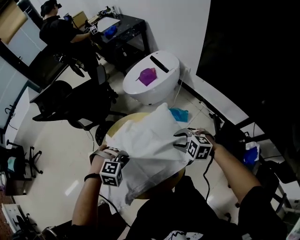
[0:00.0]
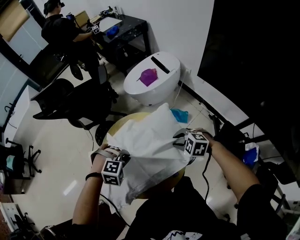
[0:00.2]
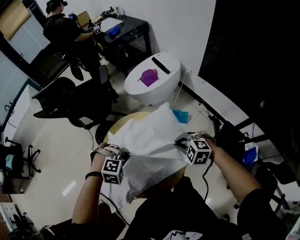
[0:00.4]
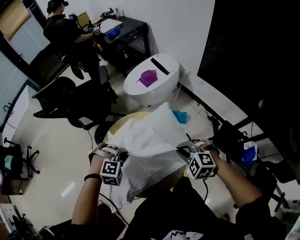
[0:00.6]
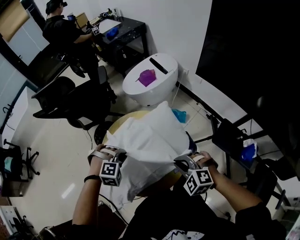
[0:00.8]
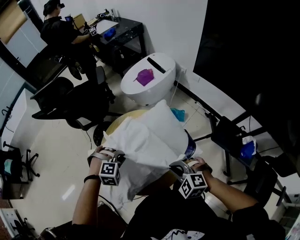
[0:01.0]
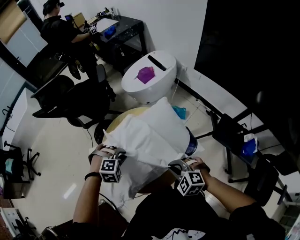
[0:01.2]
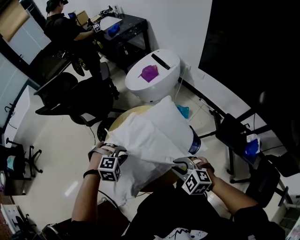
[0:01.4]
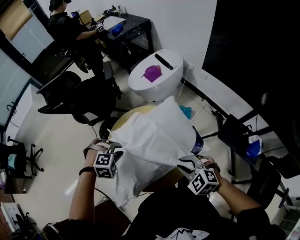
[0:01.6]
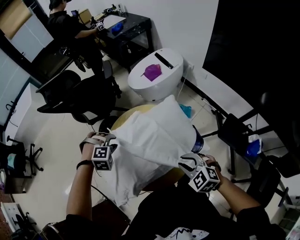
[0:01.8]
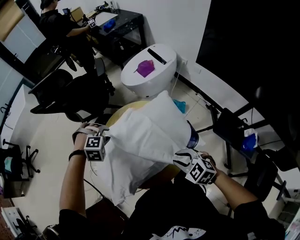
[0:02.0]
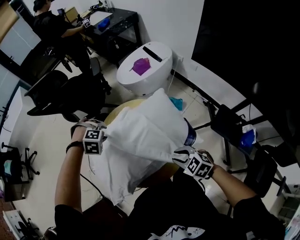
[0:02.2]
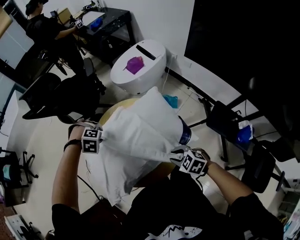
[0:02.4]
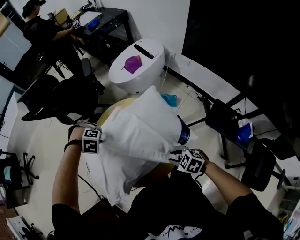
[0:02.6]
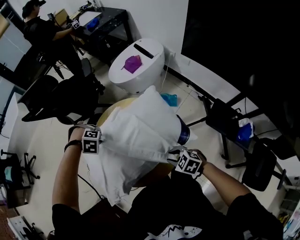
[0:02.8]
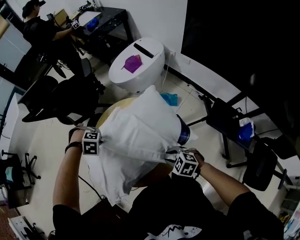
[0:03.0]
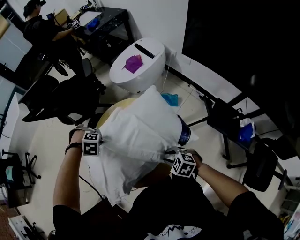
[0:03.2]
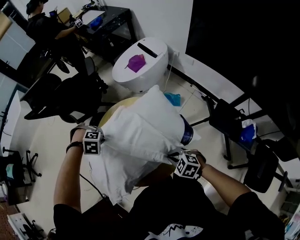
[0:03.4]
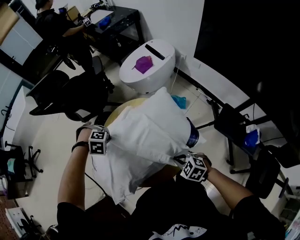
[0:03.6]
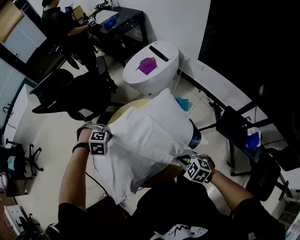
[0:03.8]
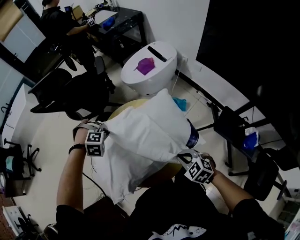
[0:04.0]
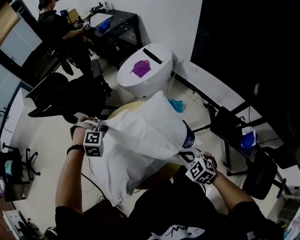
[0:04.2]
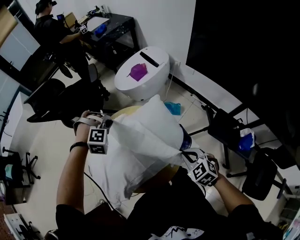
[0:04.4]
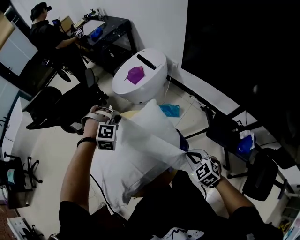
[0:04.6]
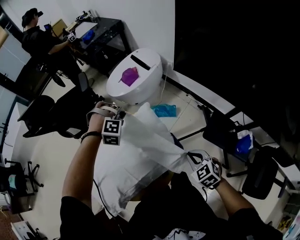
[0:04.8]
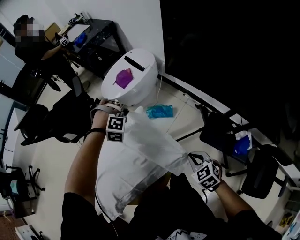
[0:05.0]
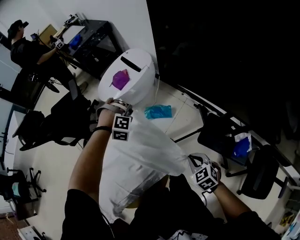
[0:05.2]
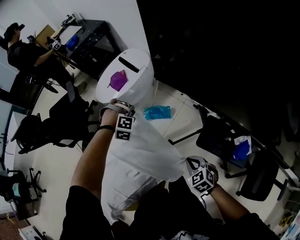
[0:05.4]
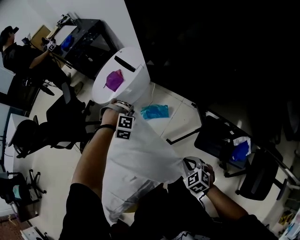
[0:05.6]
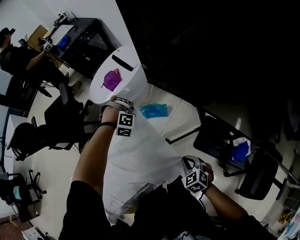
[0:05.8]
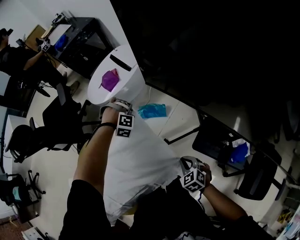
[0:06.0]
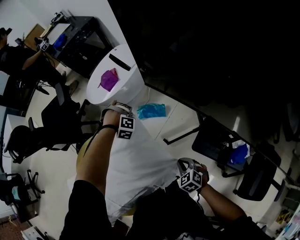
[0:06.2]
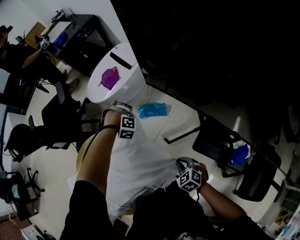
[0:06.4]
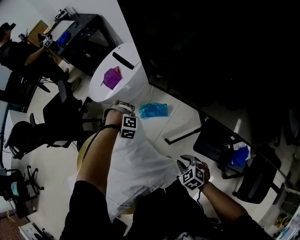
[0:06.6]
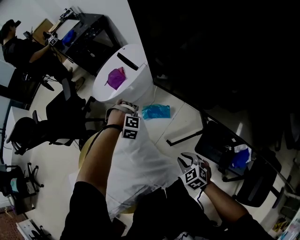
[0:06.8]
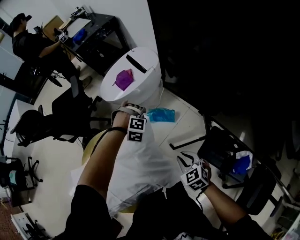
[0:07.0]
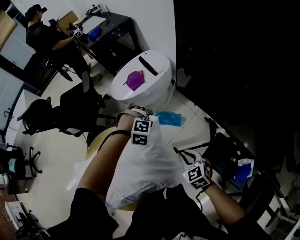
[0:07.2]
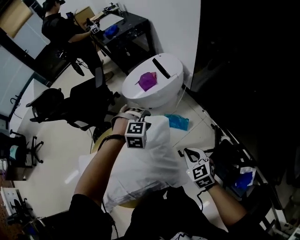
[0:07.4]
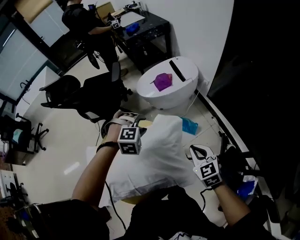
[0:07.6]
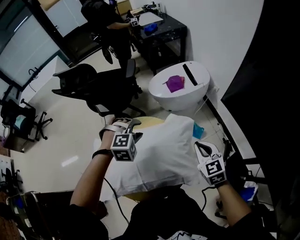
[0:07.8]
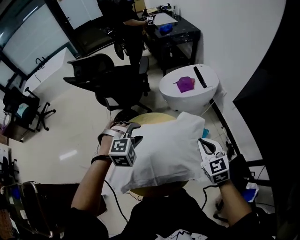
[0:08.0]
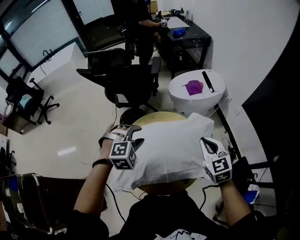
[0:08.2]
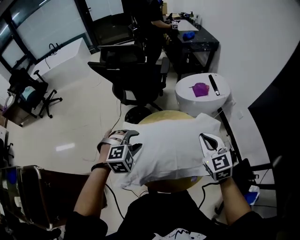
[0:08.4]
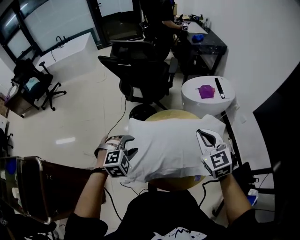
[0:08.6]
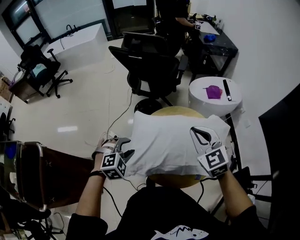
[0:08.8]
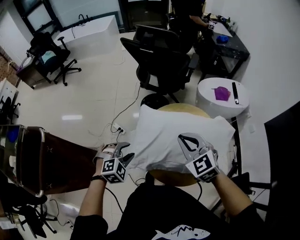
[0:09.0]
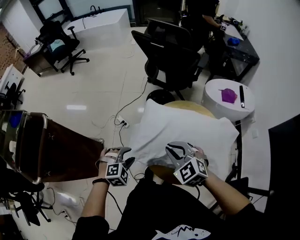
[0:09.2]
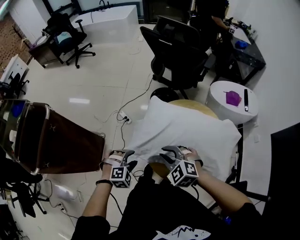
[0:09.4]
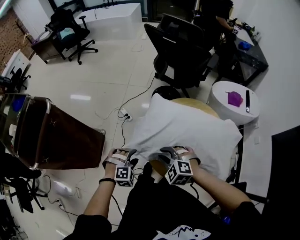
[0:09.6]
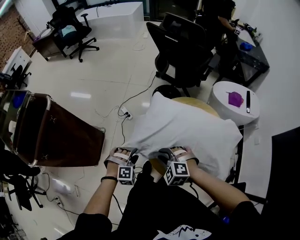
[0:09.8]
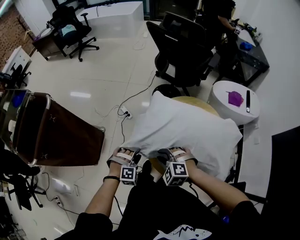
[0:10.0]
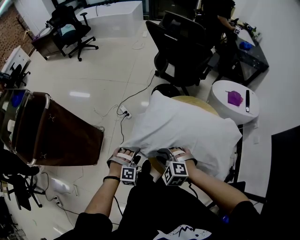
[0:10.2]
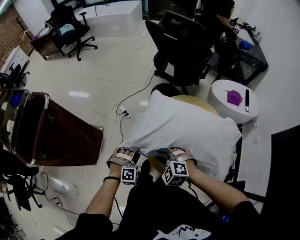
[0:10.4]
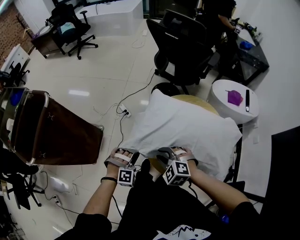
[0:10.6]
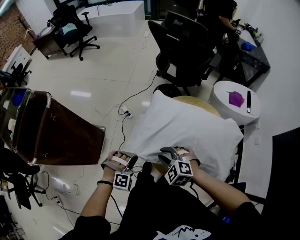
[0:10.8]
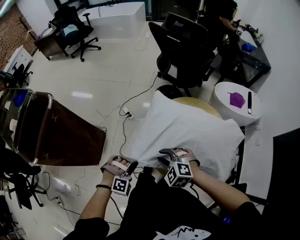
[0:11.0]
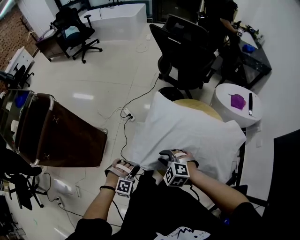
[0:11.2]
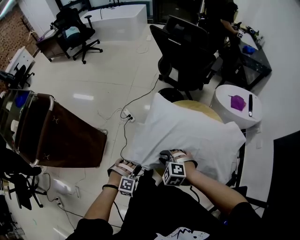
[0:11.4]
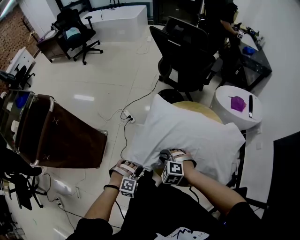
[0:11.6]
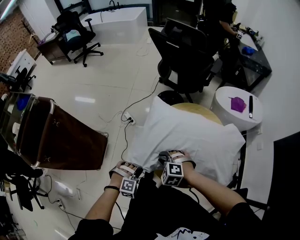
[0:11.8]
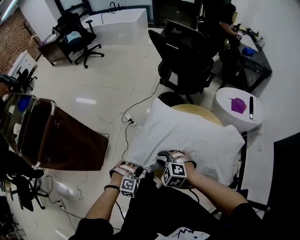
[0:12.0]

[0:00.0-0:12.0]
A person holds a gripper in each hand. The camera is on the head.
0.0 to 1.6 s: The left gripper changes place by approximately 10 cm. Meanwhile the right gripper goes up and down, about 5 cm each way, reversing 2 times, and closes and opens again.
1.6 to 3.0 s: The right gripper shifts about 10 cm downward. Meanwhile the left gripper changes place by some 10 cm, rotates roughly 20 degrees, and opens, then closes once more.
3.0 to 4.4 s: The left gripper ends up approximately 15 cm from where it was, and swivels approximately 30 degrees; the right gripper travels upward by approximately 10 cm, changes its angle by approximately 20 degrees, and closes up.
4.4 to 6.0 s: The left gripper heads to the right, downward and forward, covering some 40 cm. Meanwhile the right gripper is displaced to the right and downward by roughly 25 cm.
6.0 to 7.6 s: The right gripper moves upward, forward and to the left, approximately 20 cm, and swivels roughly 30 degrees. The left gripper travels upward, to the left and backward by some 25 cm, rotates approximately 40 degrees, and opens up.
7.6 to 9.0 s: Both grippers are carried roughly 50 cm. The right gripper turns by about 40 degrees, while the left gripper rolls counterclockwise, seen from behind, by approximately 50 degrees.
9.0 to 10.4 s: The two grippers go some 15 cm downward. The left gripper changes its angle by roughly 20 degrees. Meanwhile the right gripper rotates some 40 degrees, and opens up.
10.4 to 12.0 s: The left gripper travels backward by approximately 5 cm, and closes.

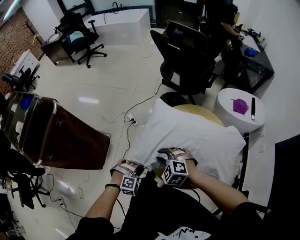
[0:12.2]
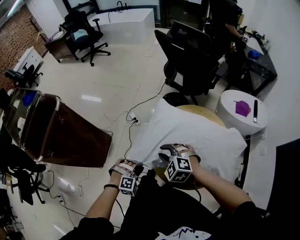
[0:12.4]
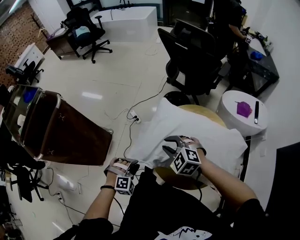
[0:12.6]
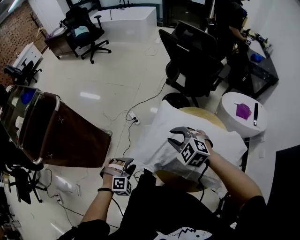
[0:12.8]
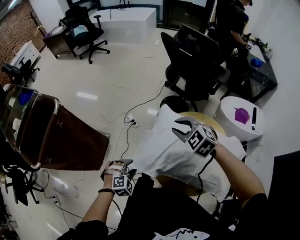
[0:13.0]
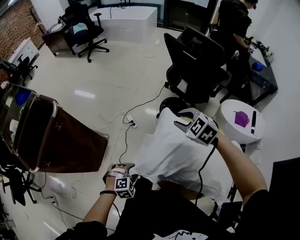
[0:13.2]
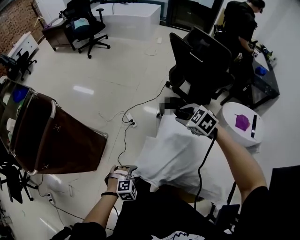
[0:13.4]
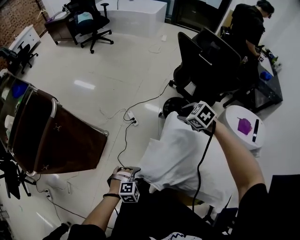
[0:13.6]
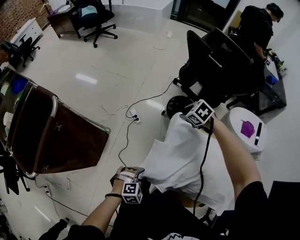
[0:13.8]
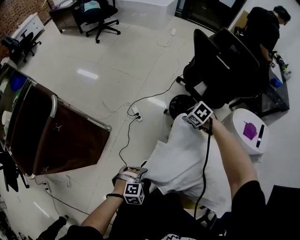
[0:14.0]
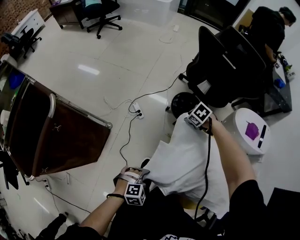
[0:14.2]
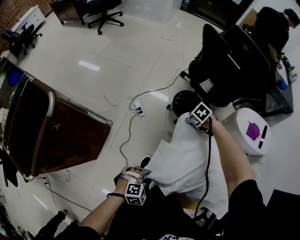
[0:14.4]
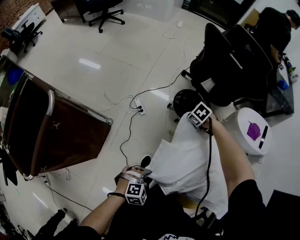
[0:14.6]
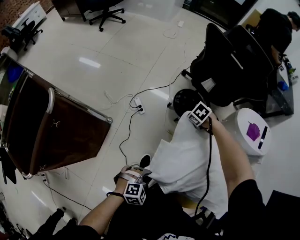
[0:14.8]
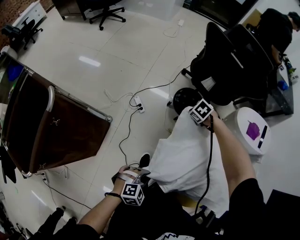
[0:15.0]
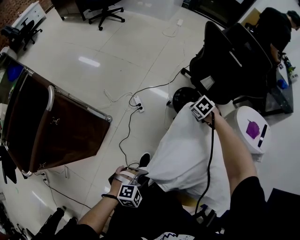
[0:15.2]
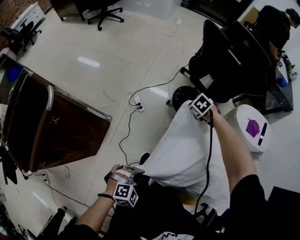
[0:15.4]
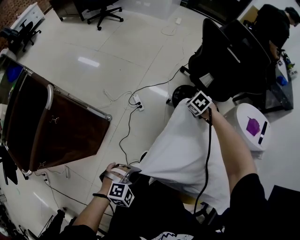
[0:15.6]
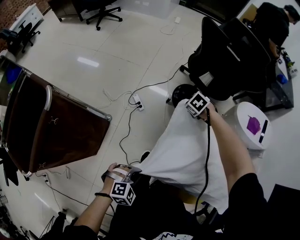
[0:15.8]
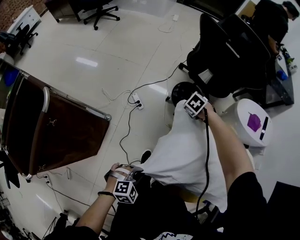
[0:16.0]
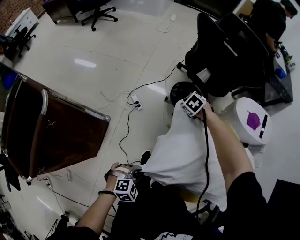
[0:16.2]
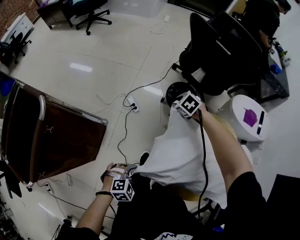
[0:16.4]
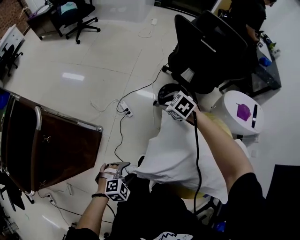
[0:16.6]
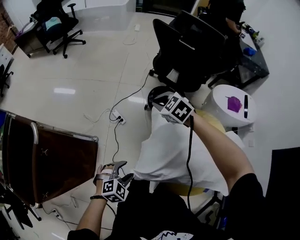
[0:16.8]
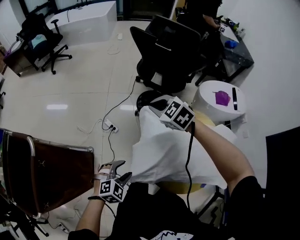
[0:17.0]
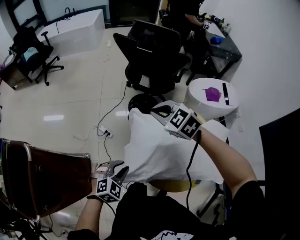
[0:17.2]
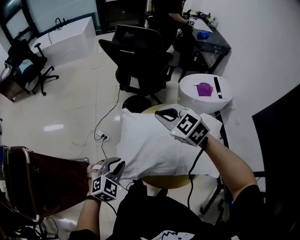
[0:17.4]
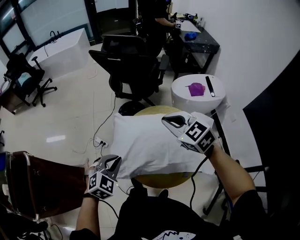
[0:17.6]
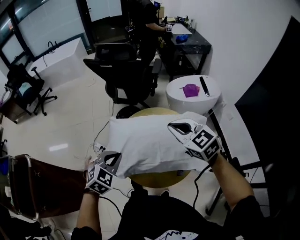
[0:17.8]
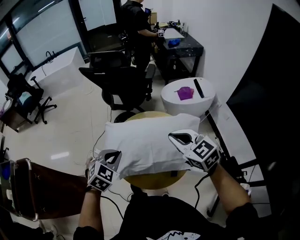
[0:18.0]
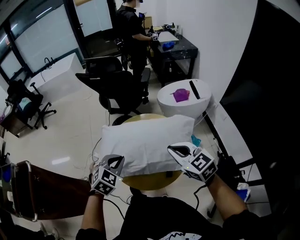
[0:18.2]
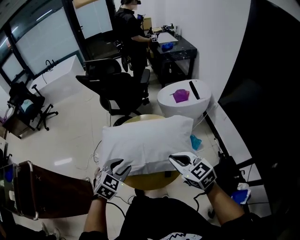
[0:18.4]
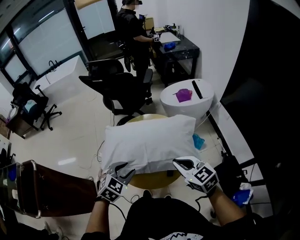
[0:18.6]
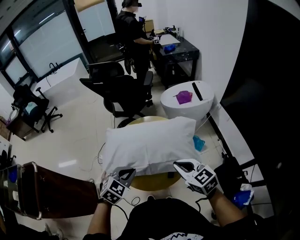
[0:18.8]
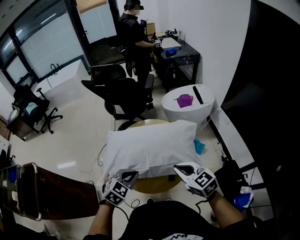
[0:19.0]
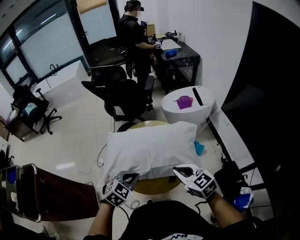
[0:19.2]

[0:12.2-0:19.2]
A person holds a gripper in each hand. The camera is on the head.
12.2 to 13.6 s: The right gripper shifts about 30 cm forward, and swivels about 20 degrees; the left gripper moves forward, some 5 cm, turns by about 30 degrees, and opens.
13.6 to 15.0 s: The right gripper travels downward by about 15 cm, rotates about 20 degrees, and closes, while the left gripper closes up.
15.0 to 16.4 s: The left gripper shifts by some 5 cm, and opens. Meanwhile the right gripper changes place by roughly 5 cm, and opens up.
16.4 to 17.8 s: The left gripper shifts approximately 30 cm upward and to the right, turns by roughly 20 degrees, and closes up. The right gripper travels upward, to the right and backward by some 50 cm, angles its fingers upward, by about 40 degrees, and closes.
17.8 to 19.2 s: The right gripper goes approximately 20 cm backward, downward and to the right, while the left gripper heads to the right and backward, covering approximately 15 cm, and opens, then closes again.

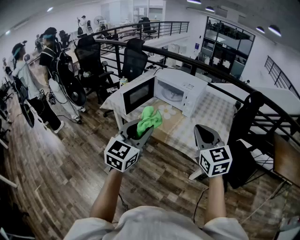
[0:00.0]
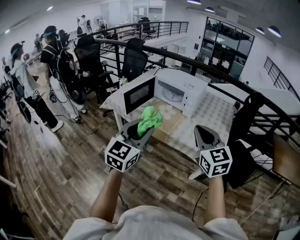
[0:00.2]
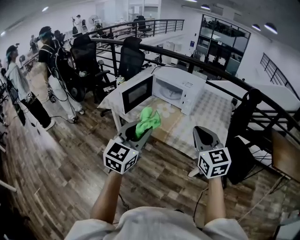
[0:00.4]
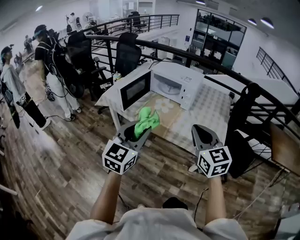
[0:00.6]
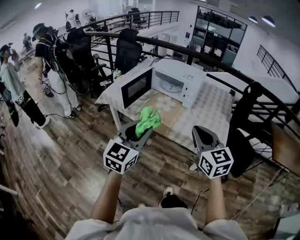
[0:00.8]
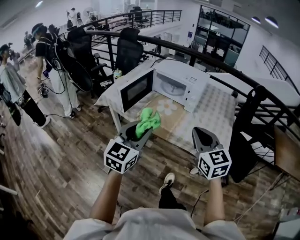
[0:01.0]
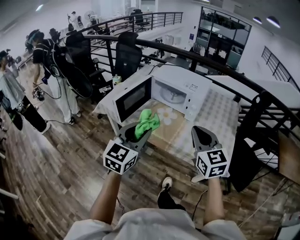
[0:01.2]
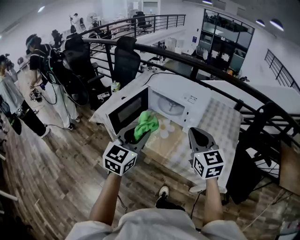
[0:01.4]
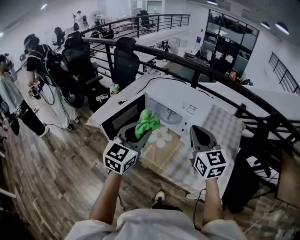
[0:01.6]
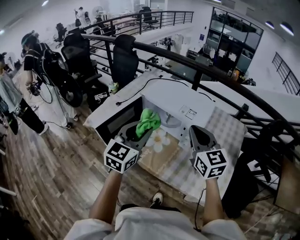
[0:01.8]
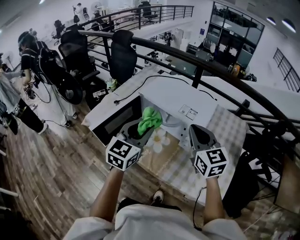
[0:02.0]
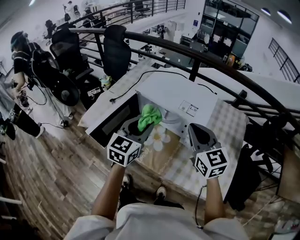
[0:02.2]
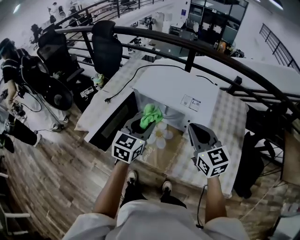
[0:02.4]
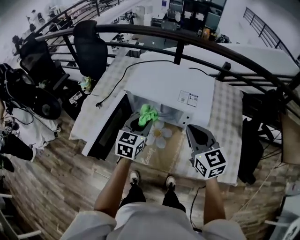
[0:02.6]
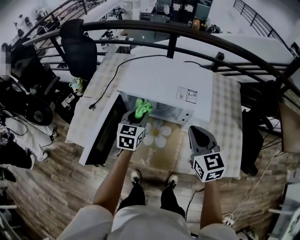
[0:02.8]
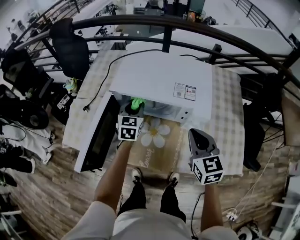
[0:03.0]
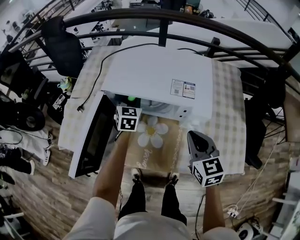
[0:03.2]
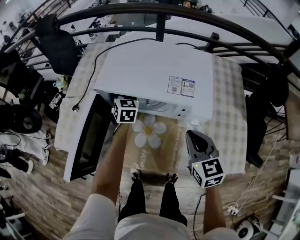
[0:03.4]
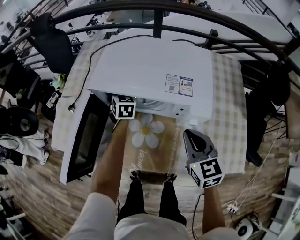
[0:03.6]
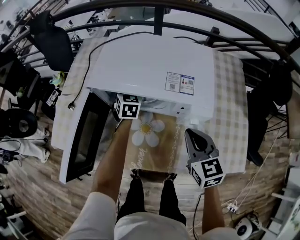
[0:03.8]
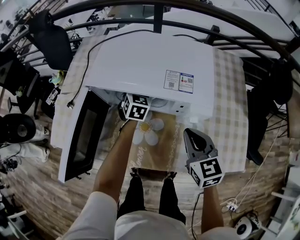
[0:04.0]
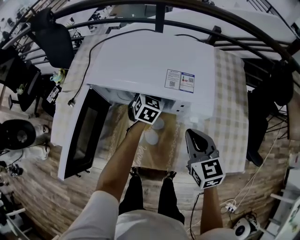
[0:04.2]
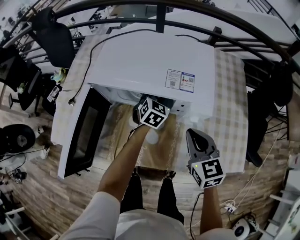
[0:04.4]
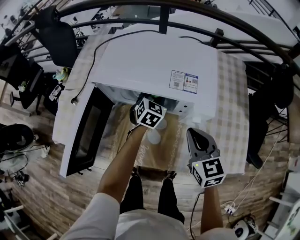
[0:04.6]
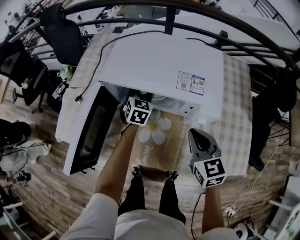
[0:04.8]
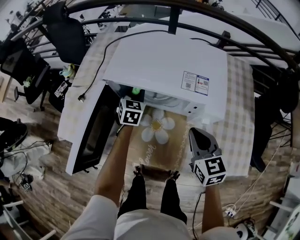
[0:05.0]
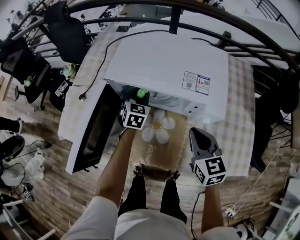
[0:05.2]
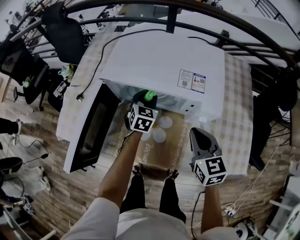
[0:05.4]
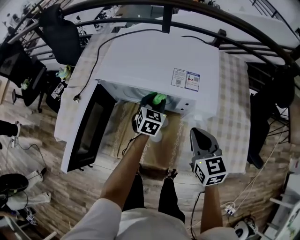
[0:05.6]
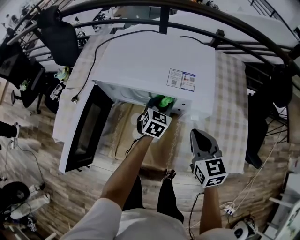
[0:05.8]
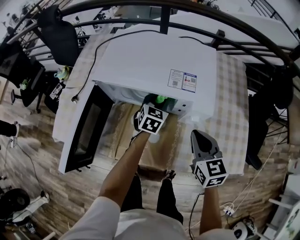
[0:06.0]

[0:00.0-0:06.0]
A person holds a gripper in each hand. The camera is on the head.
0.0 to 1.6 s: Both grippers travel together forward, about 35 cm.
1.6 to 3.0 s: The left gripper is displaced forward and downward by approximately 40 cm, while the right gripper is displaced downward and forward by approximately 25 cm, and rotates some 30 degrees.
3.0 to 4.4 s: The right gripper is displaced downward by some 5 cm. The left gripper is displaced to the right and downward by about 20 cm, and rotates about 20 degrees.
4.4 to 6.0 s: The left gripper moves approximately 20 cm to the left and comes back.
